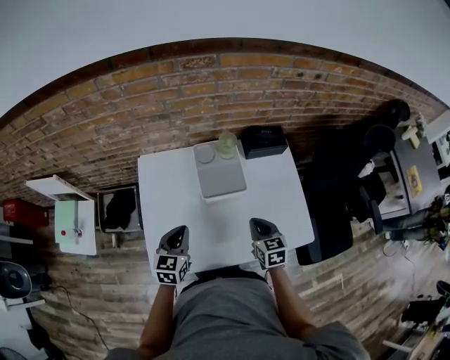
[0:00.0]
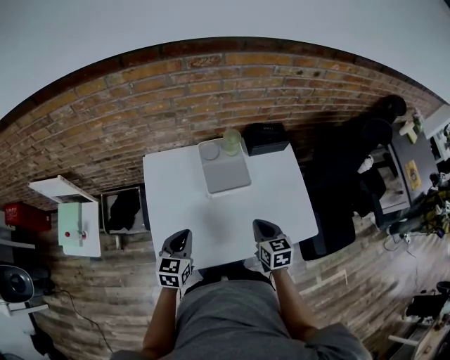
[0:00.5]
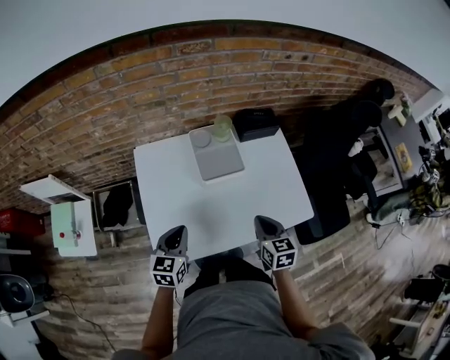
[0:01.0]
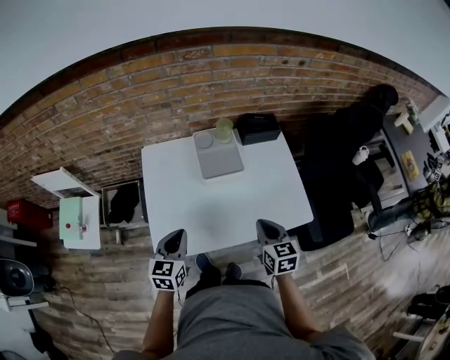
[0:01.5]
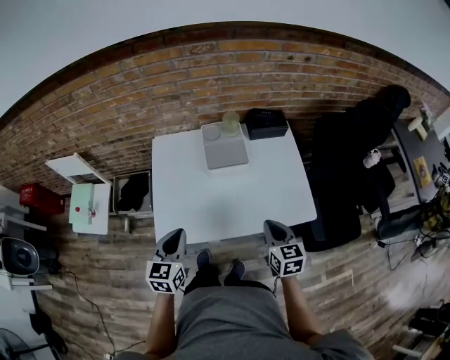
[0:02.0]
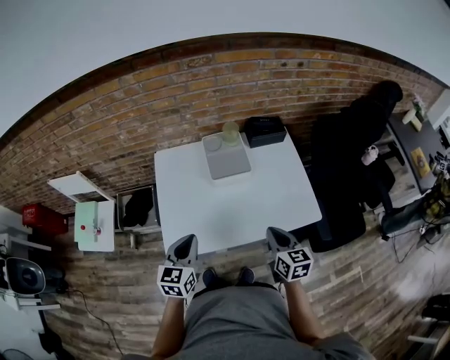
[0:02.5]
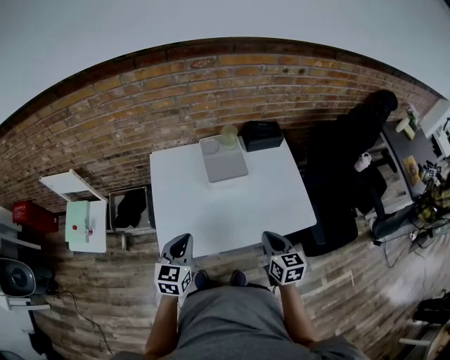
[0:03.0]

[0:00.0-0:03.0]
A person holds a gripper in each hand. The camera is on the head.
0:00.0 to 0:01.5: The right gripper is displaced backward and upward by some 15 cm. The left gripper travels backward by about 10 cm.

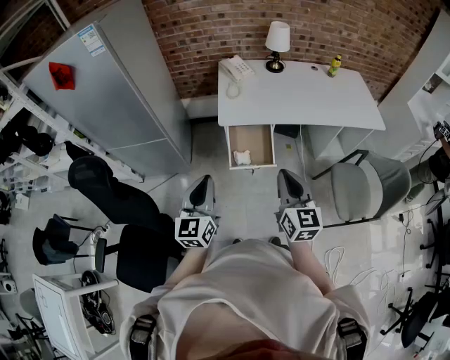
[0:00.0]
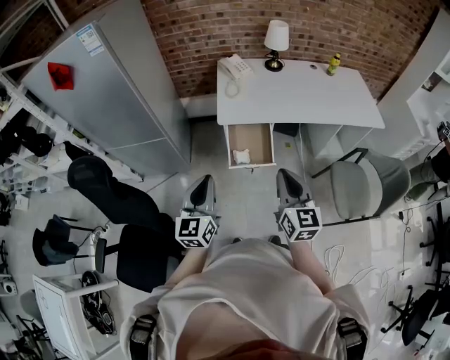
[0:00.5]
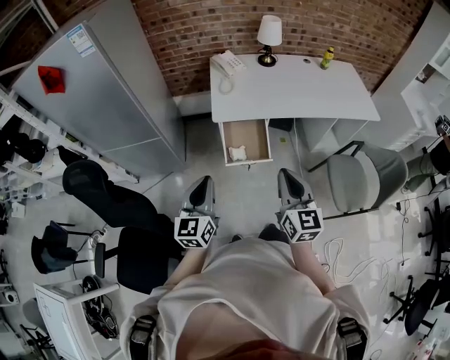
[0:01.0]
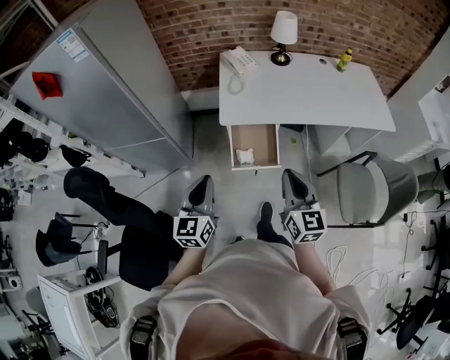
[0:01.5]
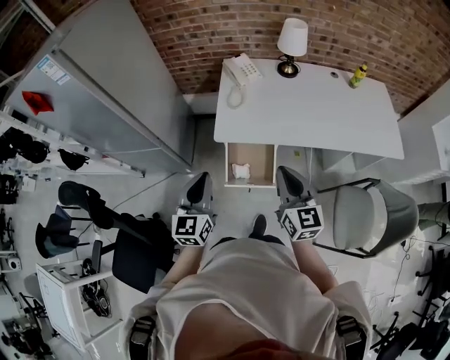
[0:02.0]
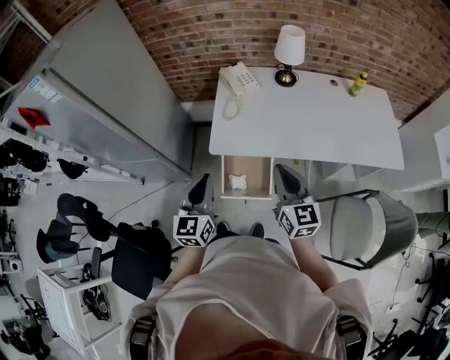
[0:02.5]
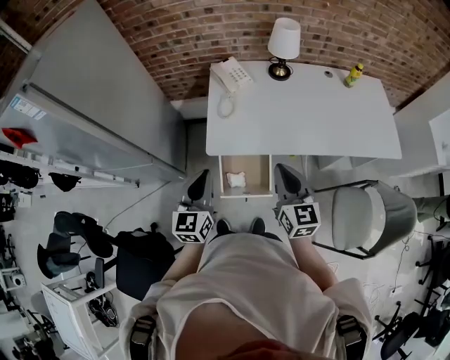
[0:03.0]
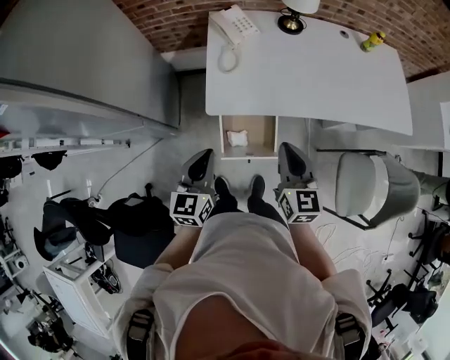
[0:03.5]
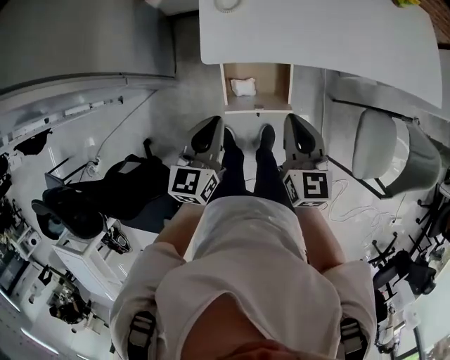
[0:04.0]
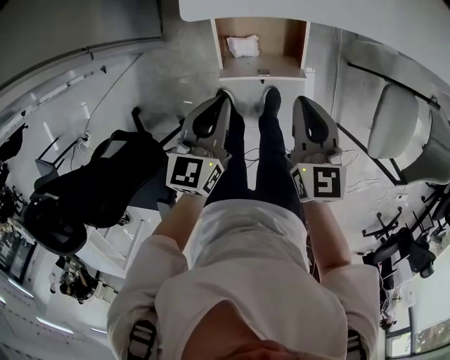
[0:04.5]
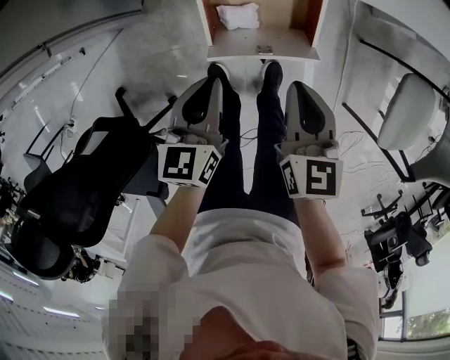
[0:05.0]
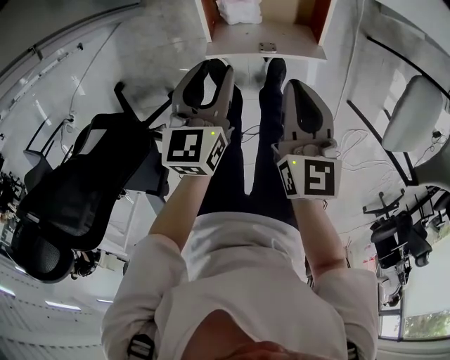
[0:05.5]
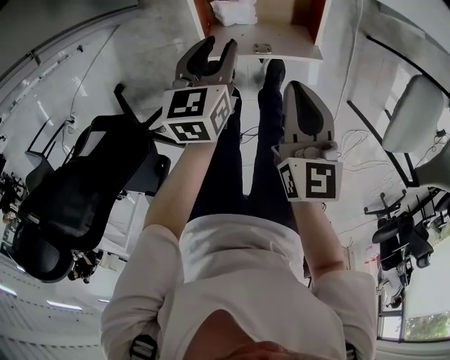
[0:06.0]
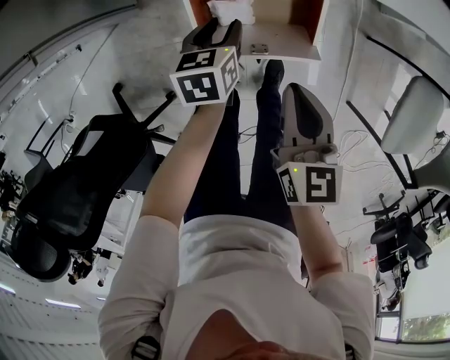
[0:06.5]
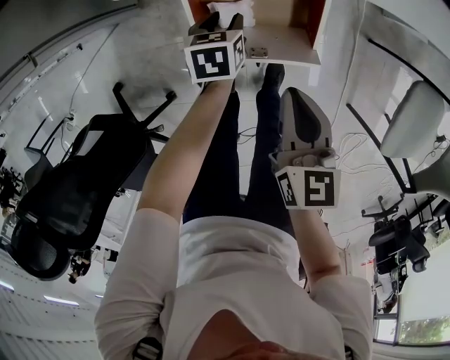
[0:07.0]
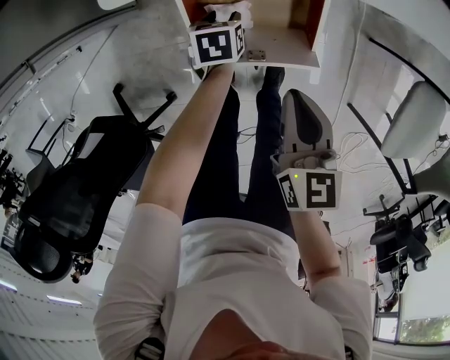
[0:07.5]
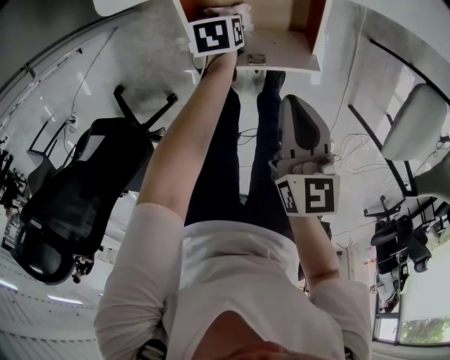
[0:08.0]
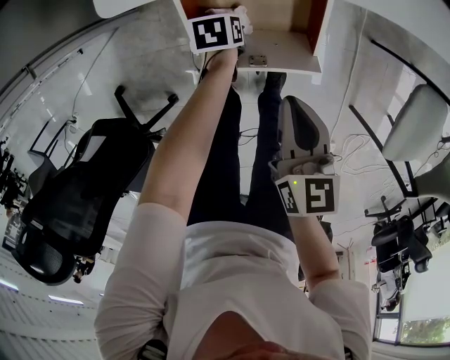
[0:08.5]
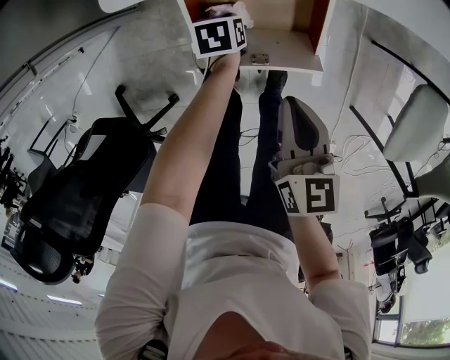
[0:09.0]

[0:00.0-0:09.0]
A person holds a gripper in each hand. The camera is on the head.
0:00.0 to 0:02.0: The grippers both shift forward by roughly 20 cm.
0:02.0 to 0:04.5: Both grippers travel together downward, about 30 cm. The right gripper changes its angle by roughly 30 degrees; the left gripper rotates roughly 30 degrees.
0:04.5 to 0:07.0: The right gripper heads downward, covering about 15 cm. The left gripper moves downward, some 30 cm, tilts its fingers roughly 30 degrees downward, and opens its fingers.
0:07.0 to 0:09.0: The left gripper travels downward by about 5 cm, and closes up.

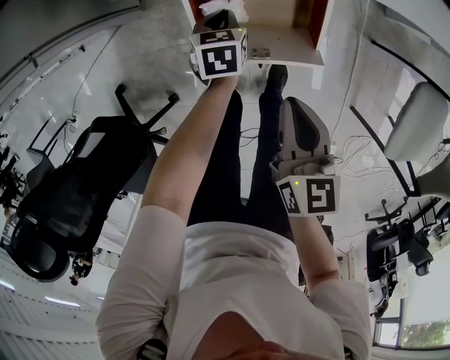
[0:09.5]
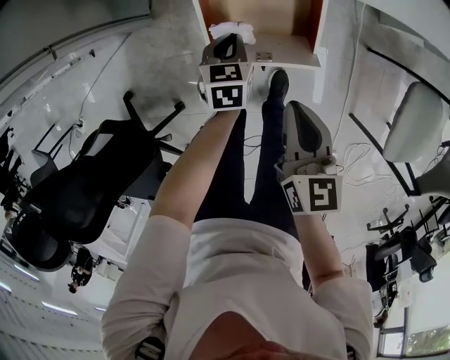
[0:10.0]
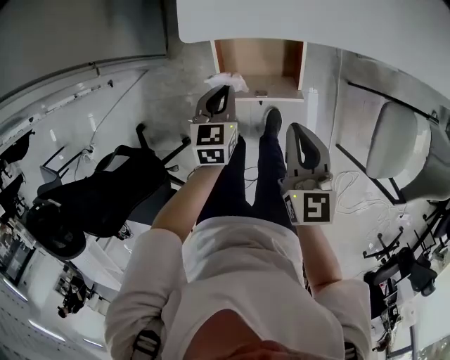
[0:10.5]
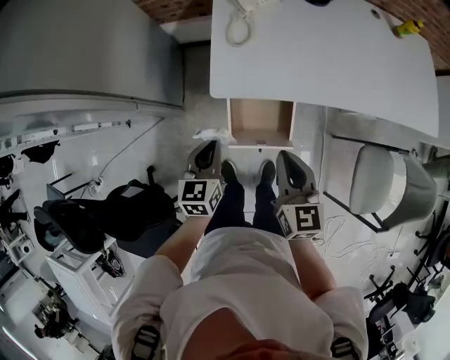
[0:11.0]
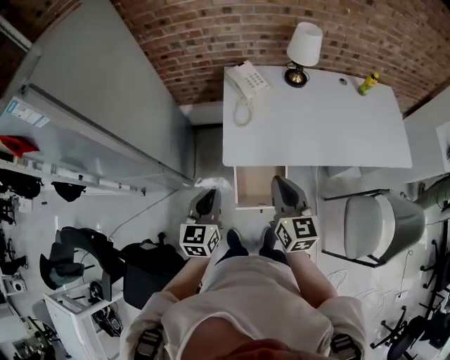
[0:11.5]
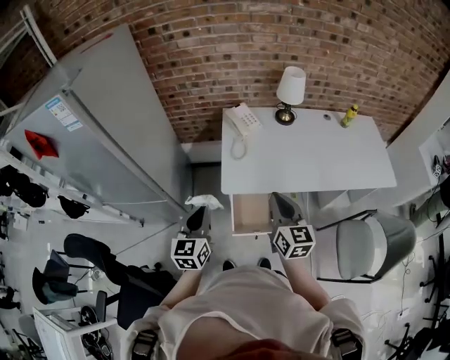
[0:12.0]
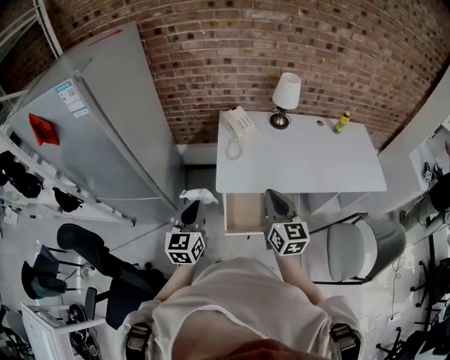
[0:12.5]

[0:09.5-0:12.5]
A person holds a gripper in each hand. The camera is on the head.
0:09.5 to 0:11.0: Both grippers travel together upward, roughly 30 cm. The left gripper turns by about 30 degrees. Meanwhile the right gripper rotates about 20 degrees.
0:11.0 to 0:12.5: The grippers both shift upward by roughly 20 cm. The left gripper turns by about 20 degrees.

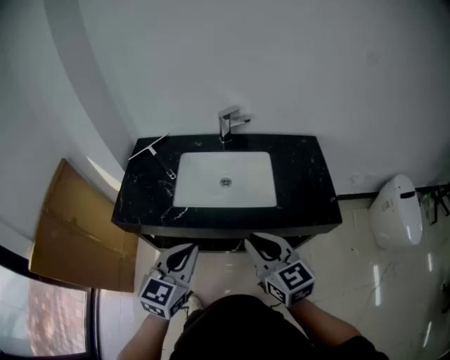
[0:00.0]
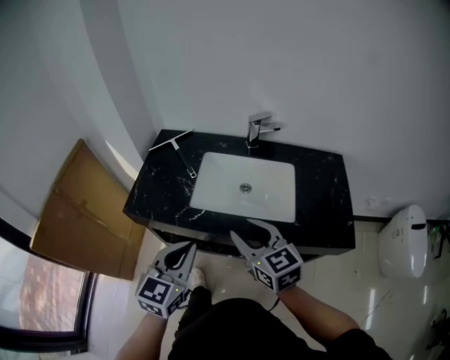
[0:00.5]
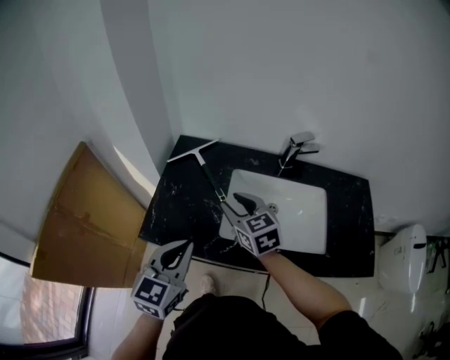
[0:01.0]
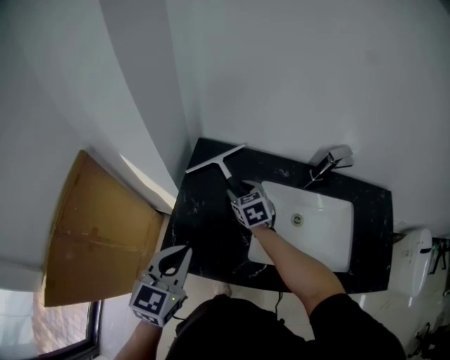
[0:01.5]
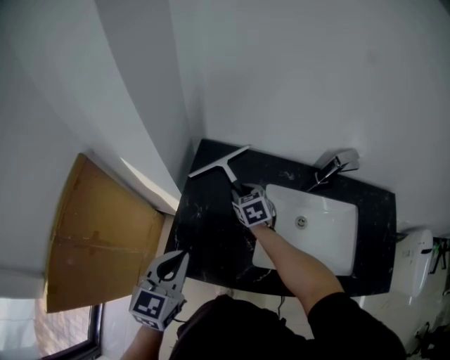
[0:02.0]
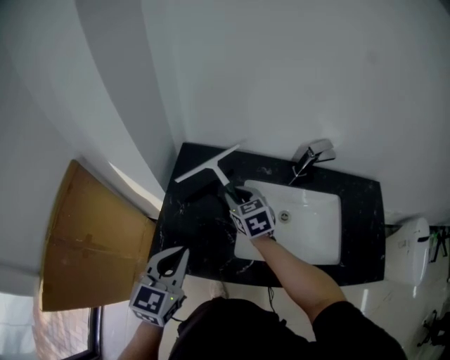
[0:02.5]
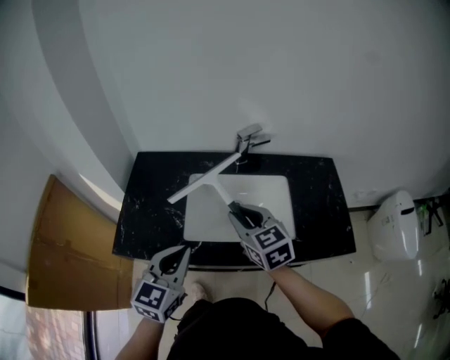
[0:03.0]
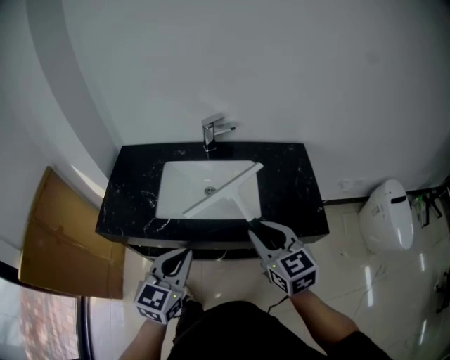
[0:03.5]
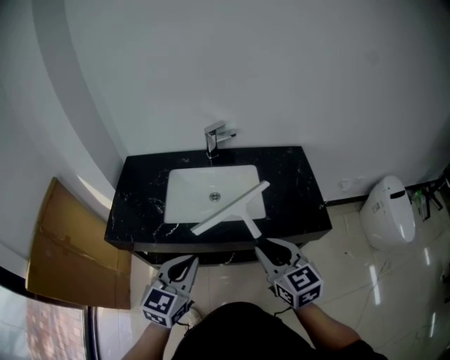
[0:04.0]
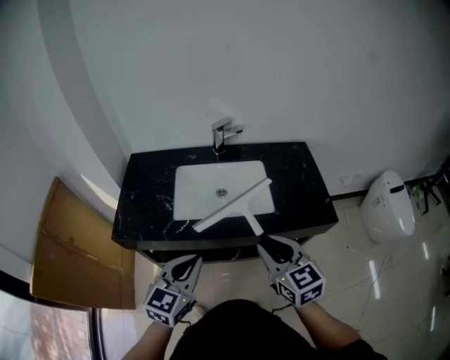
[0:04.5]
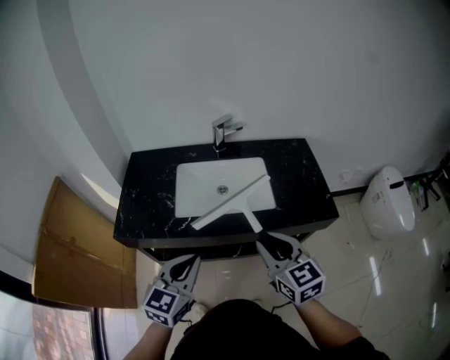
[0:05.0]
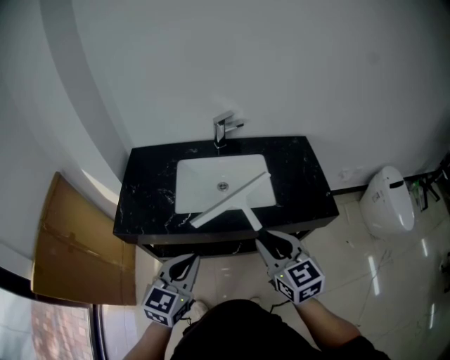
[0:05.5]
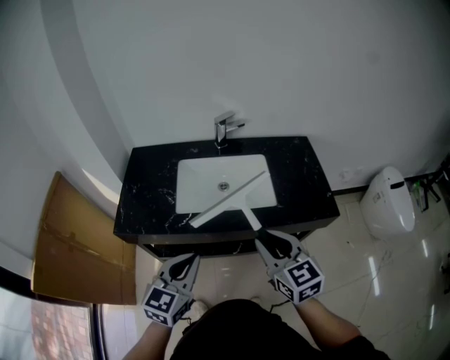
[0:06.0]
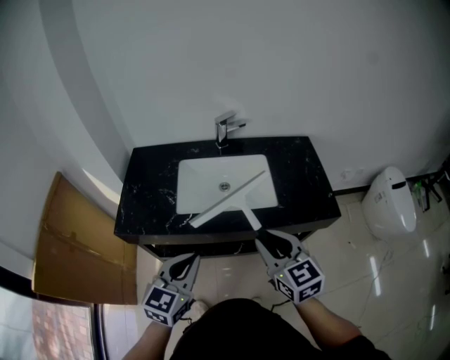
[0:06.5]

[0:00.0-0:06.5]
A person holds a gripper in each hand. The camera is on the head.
0:00.0 to 0:02.0: The right gripper shifts about 60 cm forward, to the left and downward, and tips its fingers downward by approximately 30 degrees. Meanwhile the left gripper goes roughly 40 cm to the left and forward.
0:02.0 to 0:04.5: The right gripper heads backward, to the right and upward, covering roughly 60 cm, and turns by about 30 degrees. Meanwhile the left gripper heads to the right and backward, covering approximately 35 cm, and turns by roughly 20 degrees.
0:04.5 to 0:06.5: There are only small adjustments of the grippers.

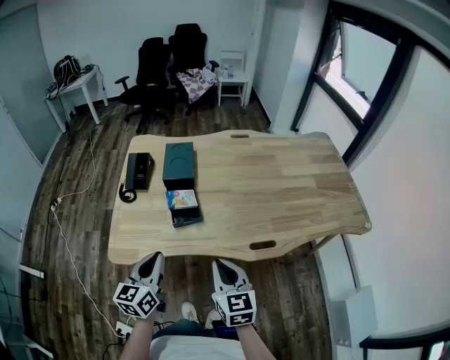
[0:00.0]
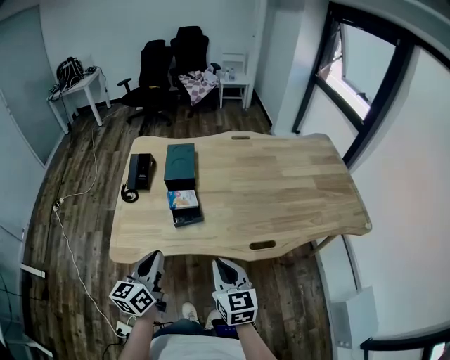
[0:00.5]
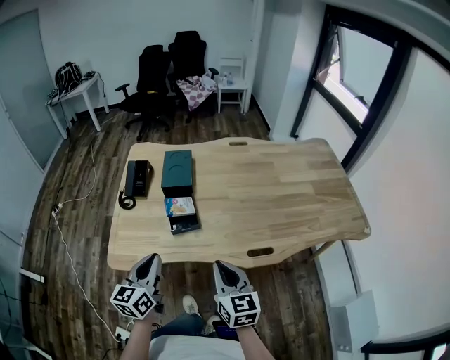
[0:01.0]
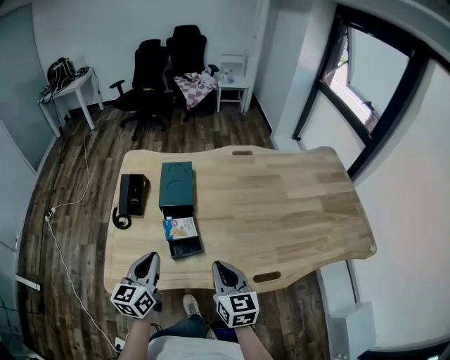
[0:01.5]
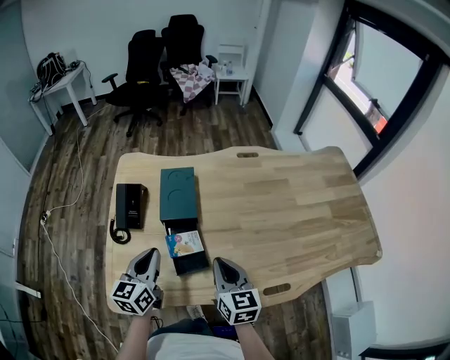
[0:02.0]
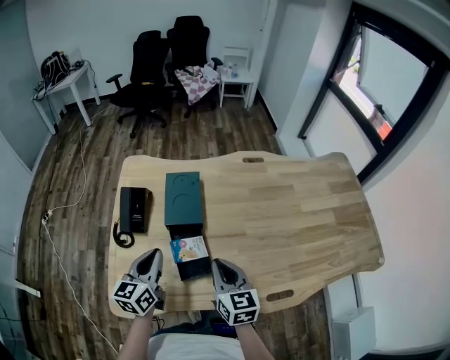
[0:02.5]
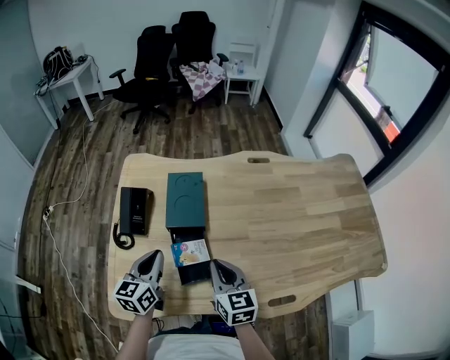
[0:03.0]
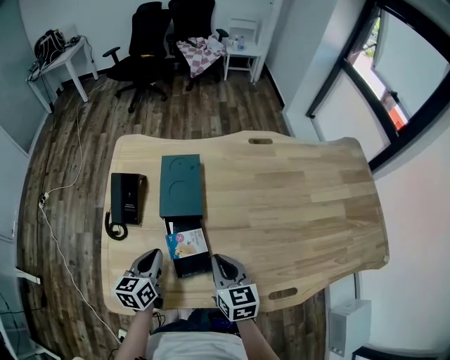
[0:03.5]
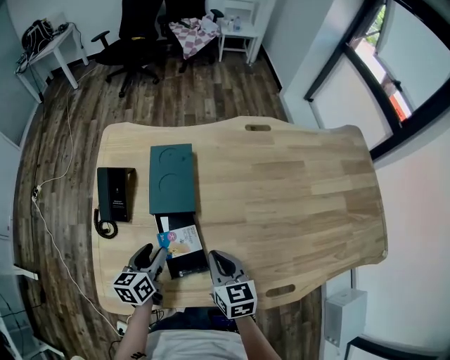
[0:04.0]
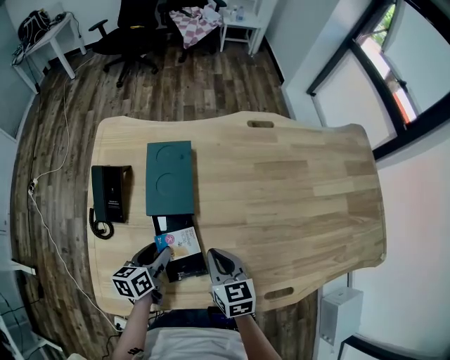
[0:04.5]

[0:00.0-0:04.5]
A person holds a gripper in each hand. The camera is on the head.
0:00.0 to 0:02.0: Both grippers move forward, approximately 25 cm.
0:02.0 to 0:04.5: The left gripper is displaced downward by approximately 15 cm, turns by some 30 degrees, and opens up. The right gripper travels downward and forward by about 15 cm.
